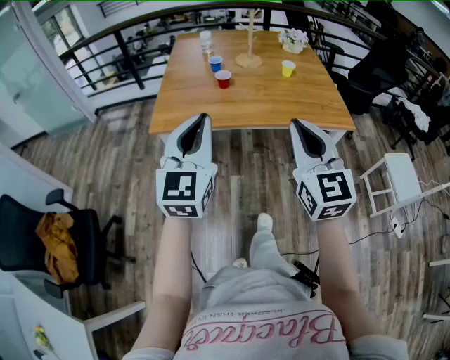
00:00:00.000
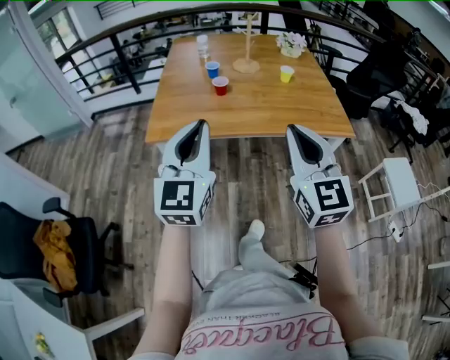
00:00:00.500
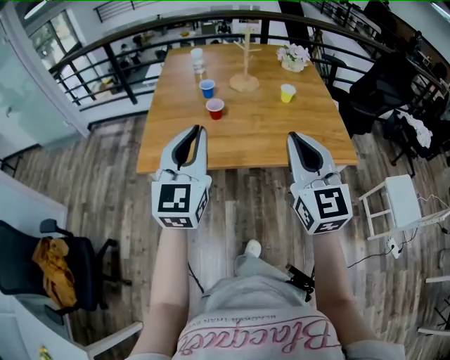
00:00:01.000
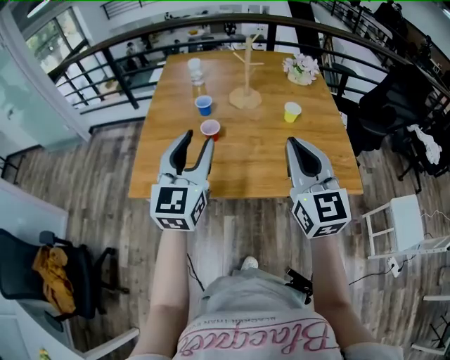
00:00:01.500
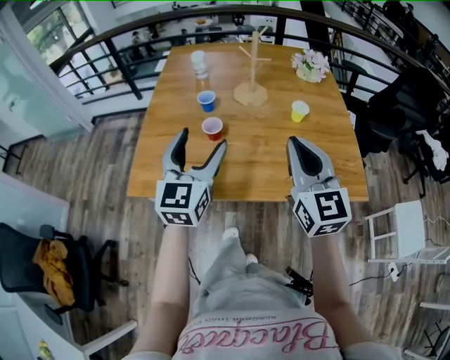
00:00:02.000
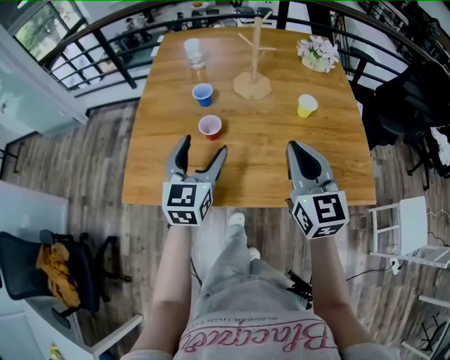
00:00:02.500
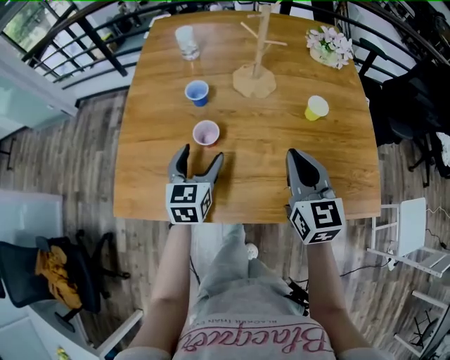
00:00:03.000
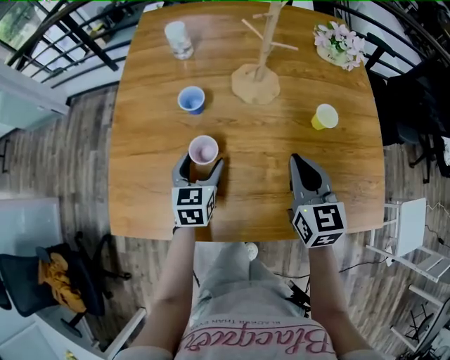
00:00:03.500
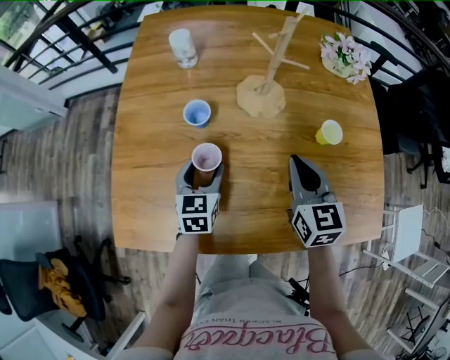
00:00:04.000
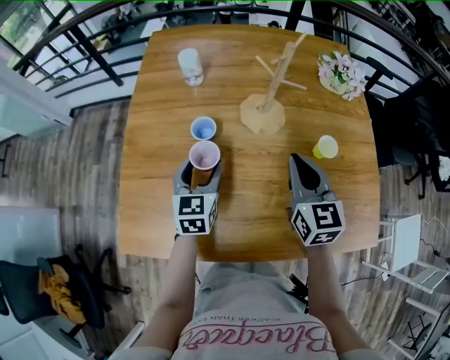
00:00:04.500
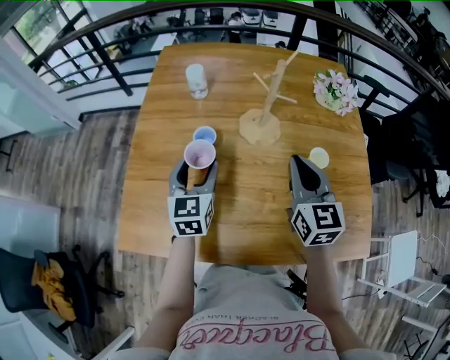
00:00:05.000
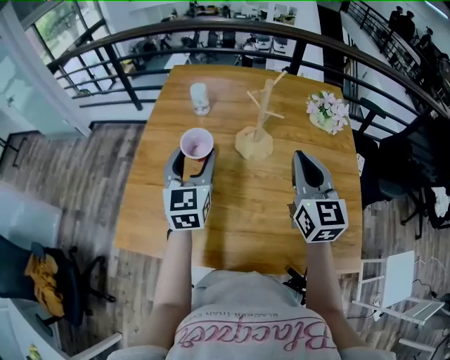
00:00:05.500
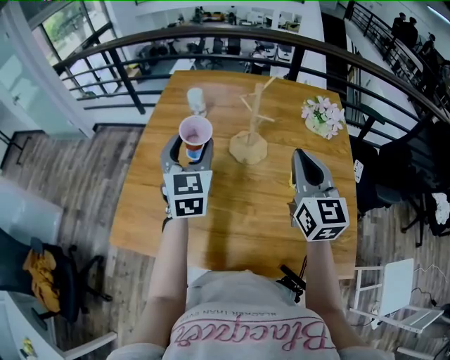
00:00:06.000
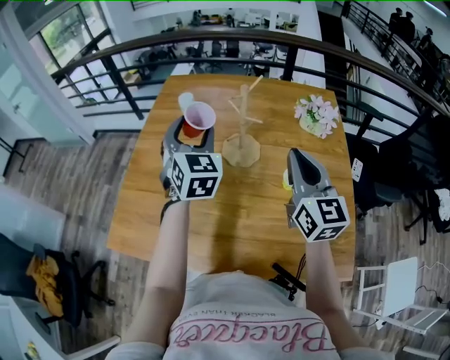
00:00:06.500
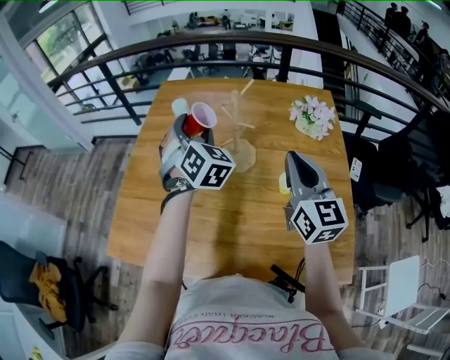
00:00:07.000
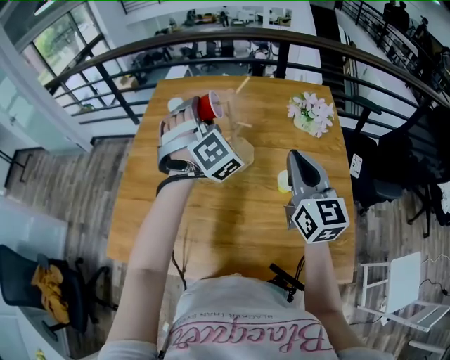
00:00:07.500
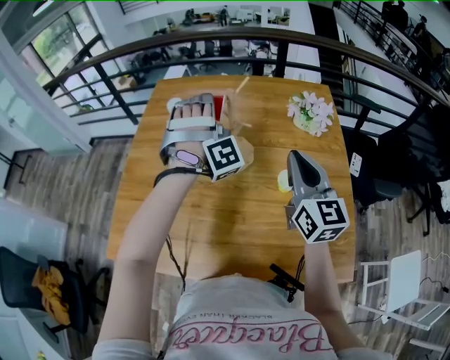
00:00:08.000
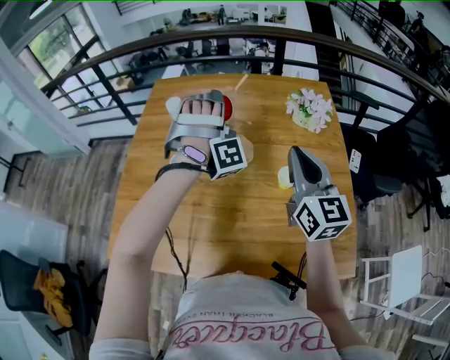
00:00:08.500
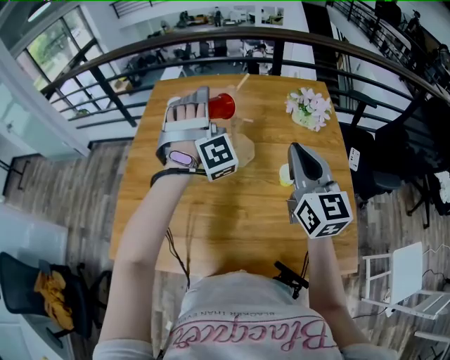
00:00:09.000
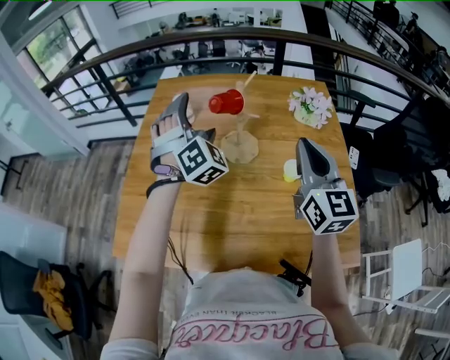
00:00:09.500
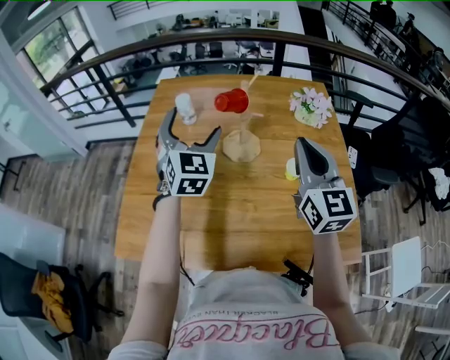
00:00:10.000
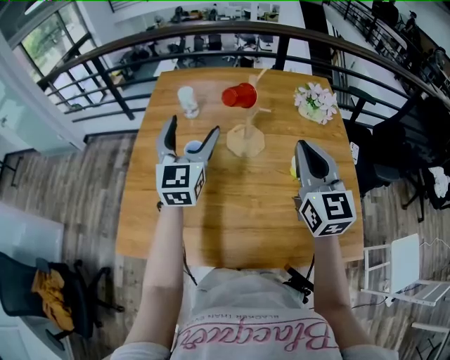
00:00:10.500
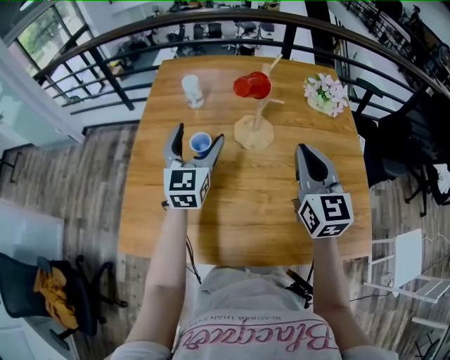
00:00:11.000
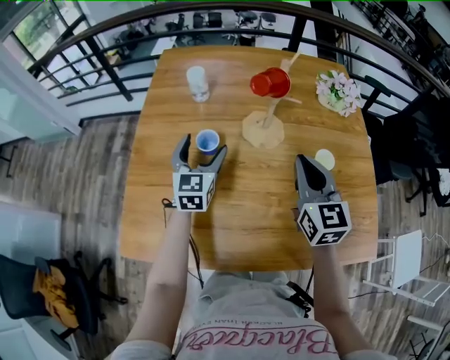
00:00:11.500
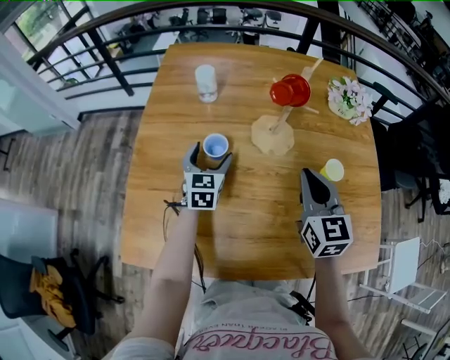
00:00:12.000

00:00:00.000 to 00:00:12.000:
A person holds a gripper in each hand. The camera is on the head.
00:00:00.000 to 00:00:02.000: The grippers both shift forward by roughly 30 cm. The left gripper opens its fingers.
00:00:02.000 to 00:00:04.000: The left gripper goes some 30 cm downward and forward, and rotates roughly 30 degrees. The right gripper goes some 25 cm forward and downward, and turns by about 20 degrees.
00:00:04.000 to 00:00:06.000: Both grippers travel together upward, approximately 20 cm. The right gripper changes its angle by some 20 degrees. The left gripper turns by approximately 30 degrees.
00:00:06.000 to 00:00:08.000: The left gripper travels to the right and forward by about 15 cm, and rotates around the line of its fingers by about 90 degrees, clockwise from behind, while the right gripper moves to the right, approximately 5 cm.
00:00:08.000 to 00:00:10.000: The left gripper travels to the left and backward by roughly 10 cm, twists roughly 70 degrees counterclockwise, seen from behind, and opens its fingers. The right gripper moves some 5 cm.
00:00:10.000 to 00:00:12.000: The left gripper goes approximately 25 cm downward, and changes its angle by roughly 30 degrees; the right gripper travels downward and to the left by roughly 15 cm.

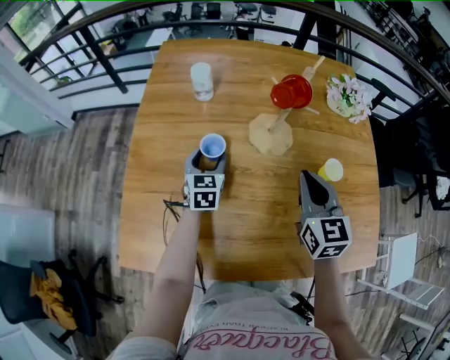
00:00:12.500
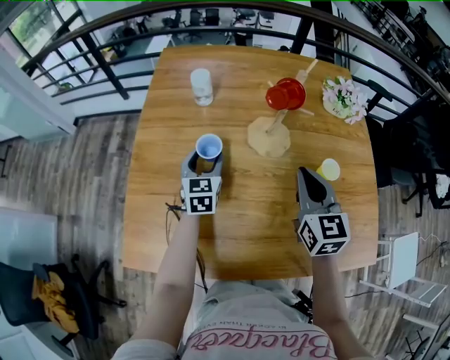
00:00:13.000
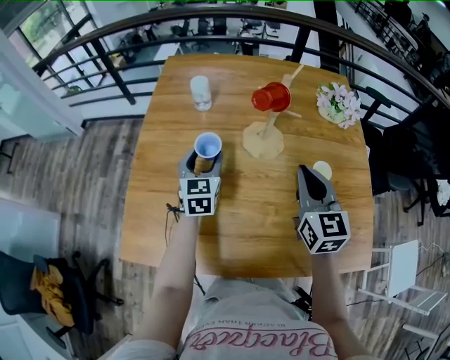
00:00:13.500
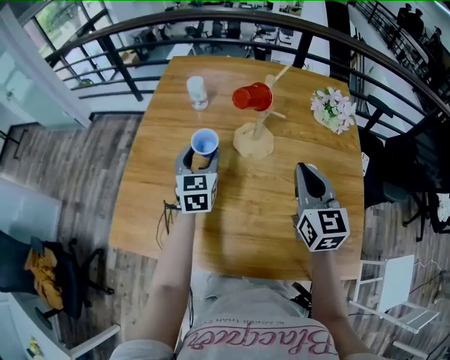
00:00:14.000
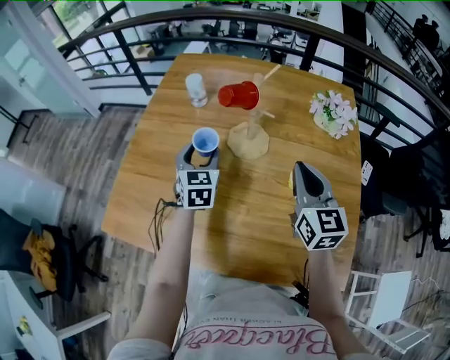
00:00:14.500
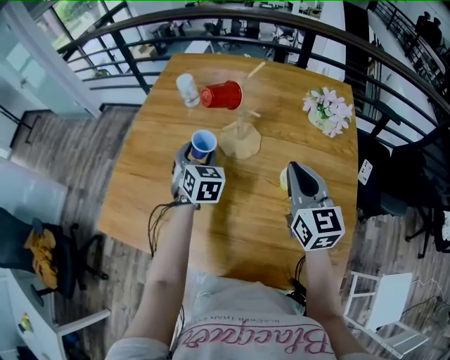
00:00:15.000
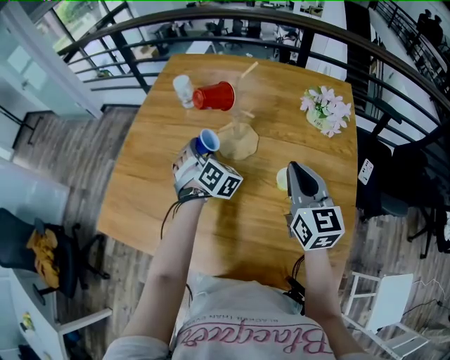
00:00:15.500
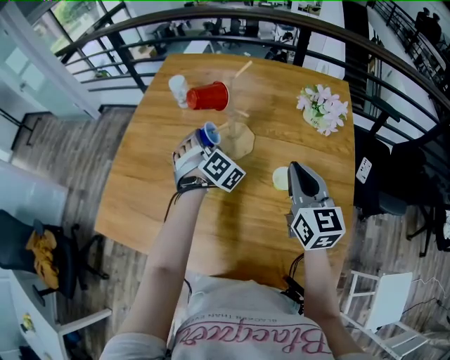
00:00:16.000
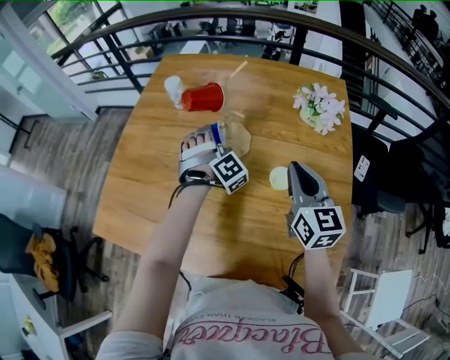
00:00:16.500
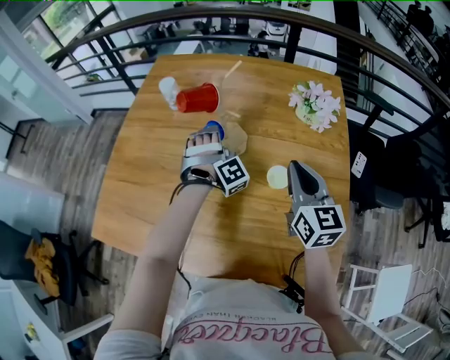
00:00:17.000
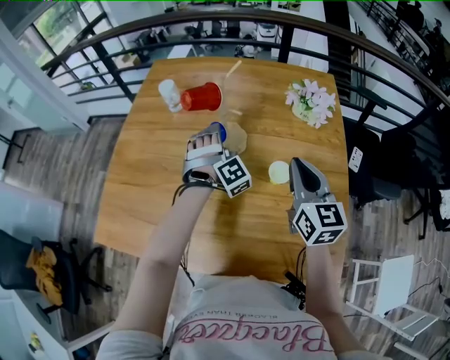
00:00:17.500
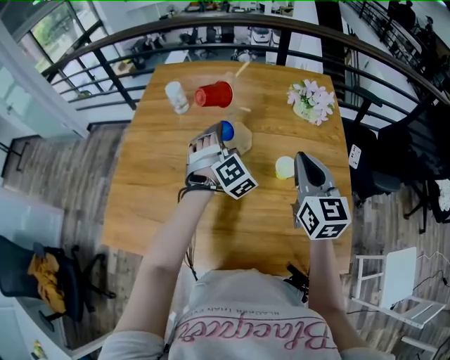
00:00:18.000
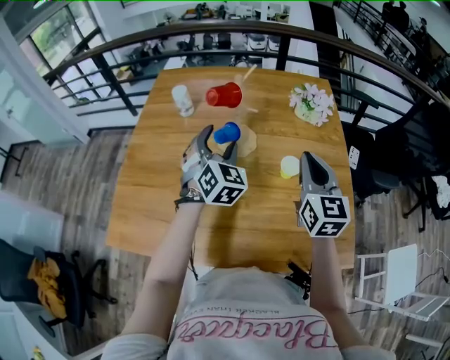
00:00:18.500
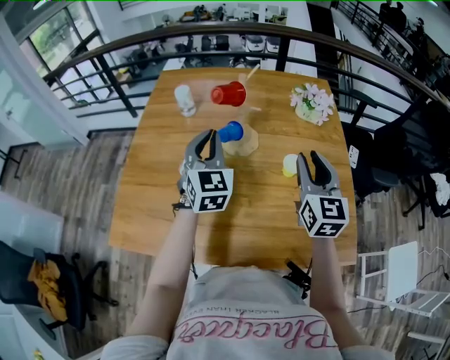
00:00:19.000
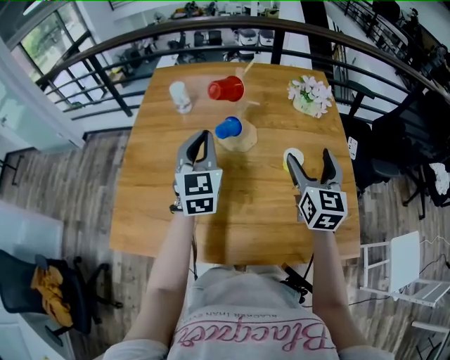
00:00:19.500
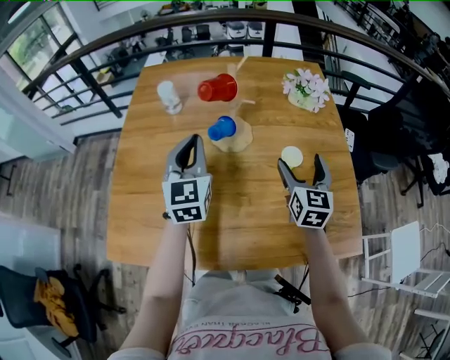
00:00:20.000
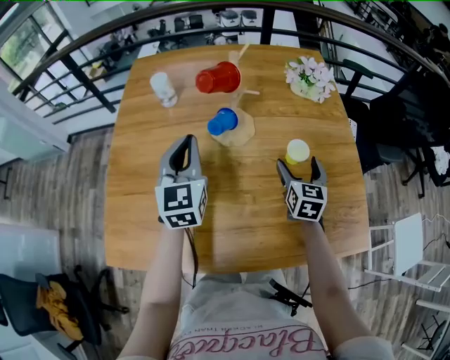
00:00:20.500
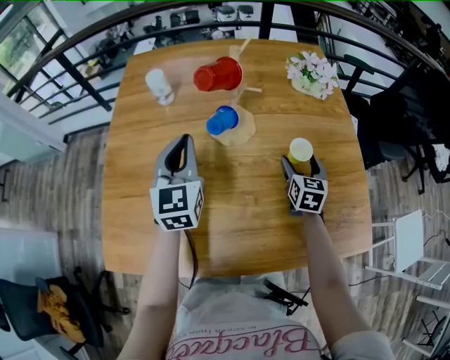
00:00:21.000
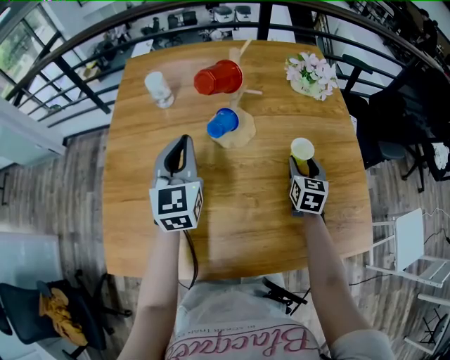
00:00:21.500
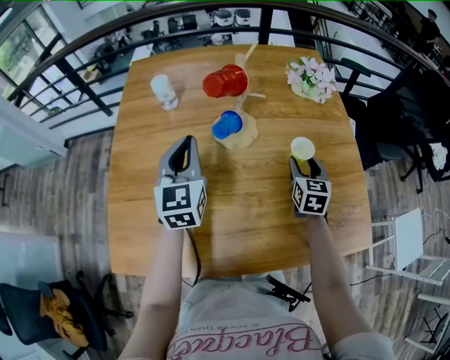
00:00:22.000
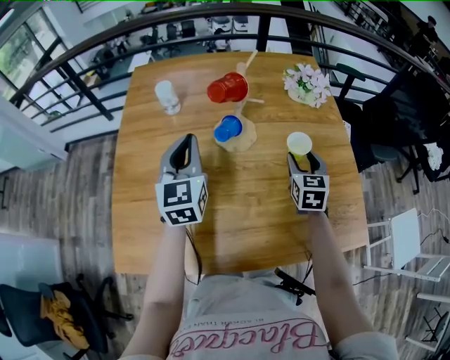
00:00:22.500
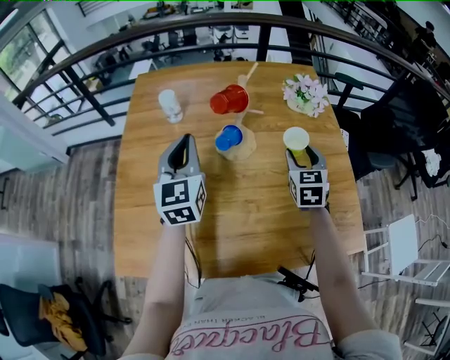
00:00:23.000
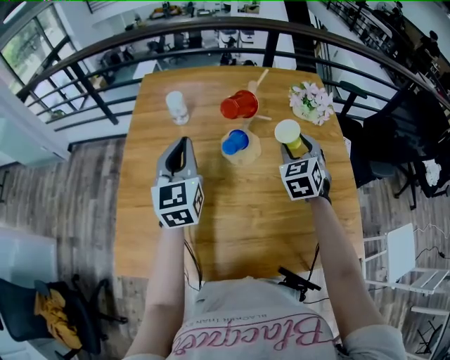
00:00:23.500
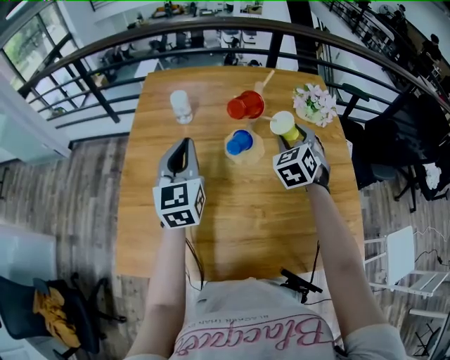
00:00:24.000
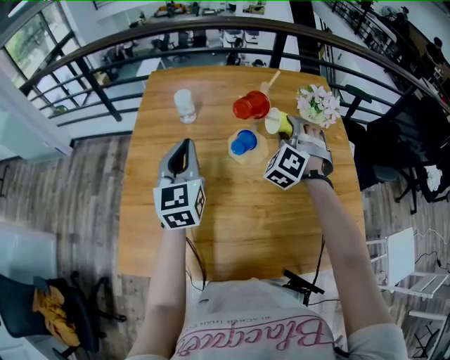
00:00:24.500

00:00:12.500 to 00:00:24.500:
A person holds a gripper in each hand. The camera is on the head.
00:00:12.500 to 00:00:14.500: The left gripper moves upward, to the right and backward, roughly 15 cm; the right gripper goes approximately 10 cm to the right and upward.
00:00:14.500 to 00:00:16.500: The left gripper moves to the right, approximately 10 cm, and rotates around the line of its fingers by some 70 degrees, clockwise from behind, while the right gripper is displaced to the right by about 5 cm.
00:00:16.500 to 00:00:18.500: The left gripper is displaced upward and backward by roughly 15 cm, and changes its angle by some 50 degrees. Meanwhile the right gripper shifts by roughly 5 cm.
00:00:18.500 to 00:00:20.500: The left gripper shifts approximately 10 cm to the left, swivels some 30 degrees, and closes up; the right gripper travels downward by approximately 20 cm, changes its angle by approximately 20 degrees, and opens.
00:00:20.500 to 00:00:22.500: The right gripper closes up.
00:00:22.500 to 00:00:24.500: The left gripper is displaced to the left by approximately 5 cm. The right gripper moves to the left, upward and forward, about 15 cm, and twists approximately 70 degrees counterclockwise, seen from behind.

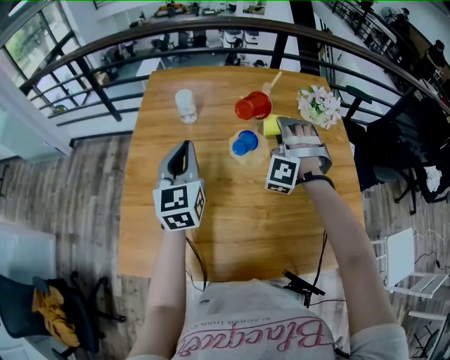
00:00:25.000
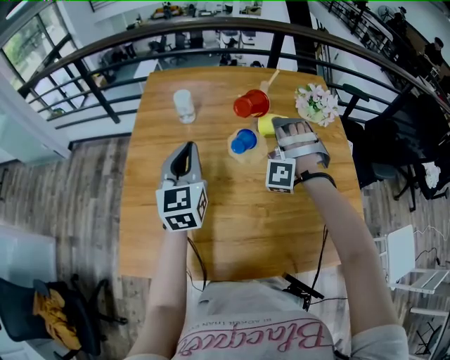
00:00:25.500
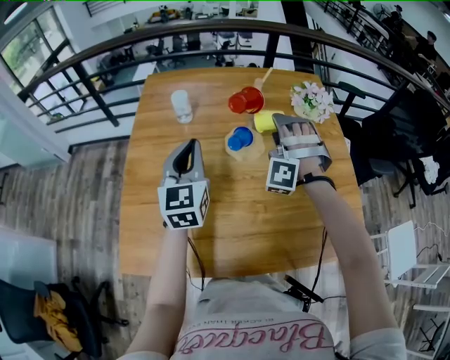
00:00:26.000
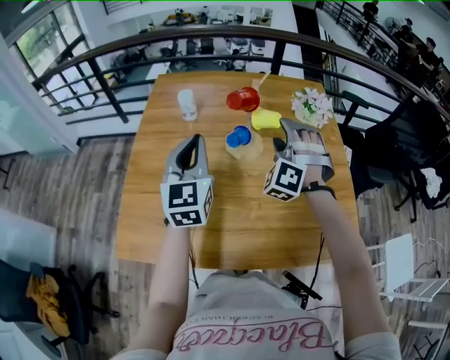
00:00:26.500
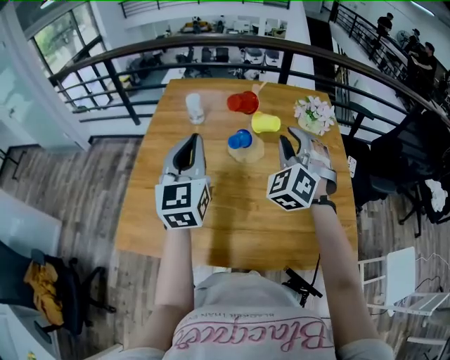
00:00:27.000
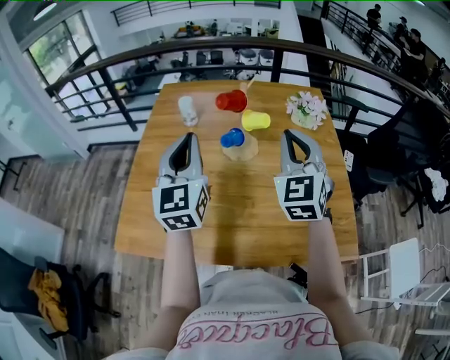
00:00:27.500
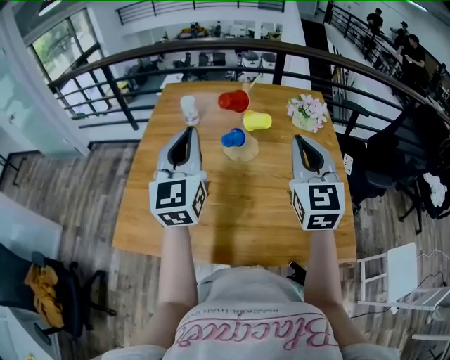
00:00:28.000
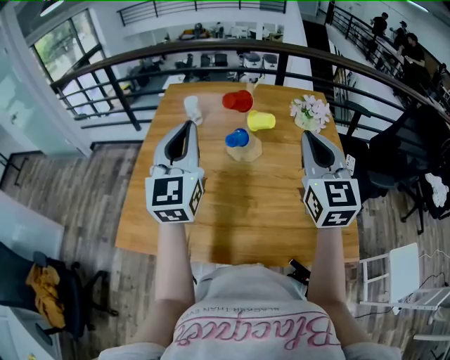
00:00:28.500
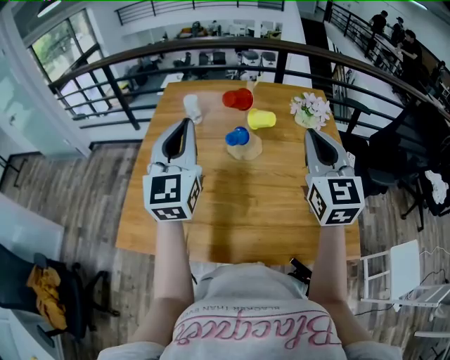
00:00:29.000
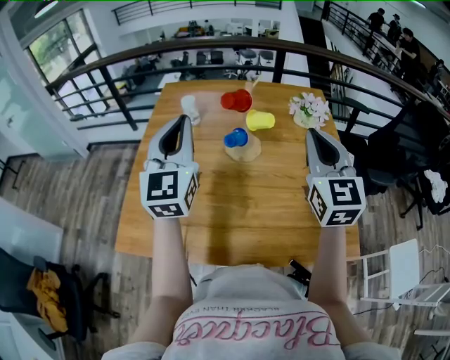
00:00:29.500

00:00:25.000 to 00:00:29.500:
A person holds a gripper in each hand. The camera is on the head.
00:00:25.000 to 00:00:27.000: The left gripper goes approximately 15 cm backward, upward and to the right. The right gripper shifts some 15 cm backward and upward, and swivels some 40 degrees.
00:00:27.000 to 00:00:29.500: The left gripper goes approximately 5 cm upward. The right gripper travels upward and backward by some 10 cm, and rotates around the line of its fingers by roughly 50 degrees, clockwise from behind.
